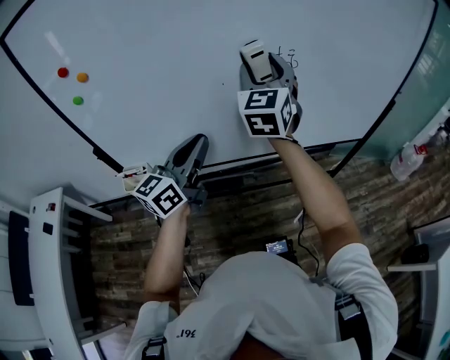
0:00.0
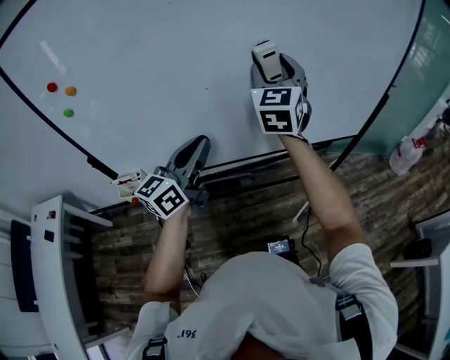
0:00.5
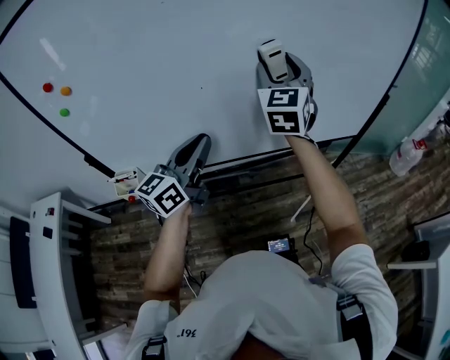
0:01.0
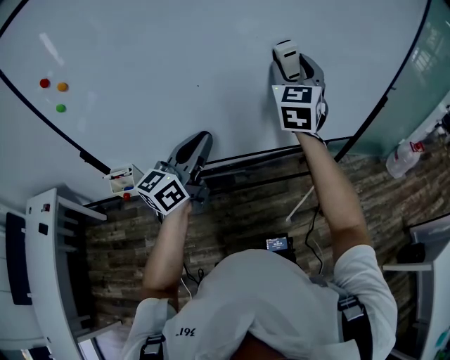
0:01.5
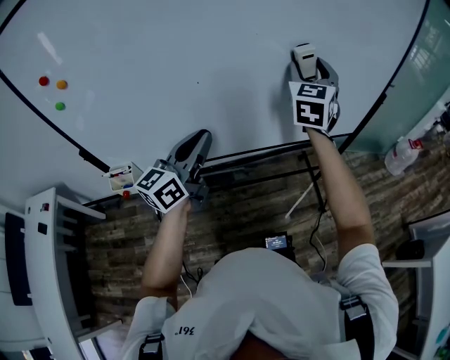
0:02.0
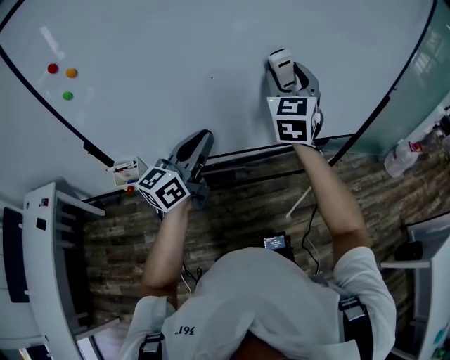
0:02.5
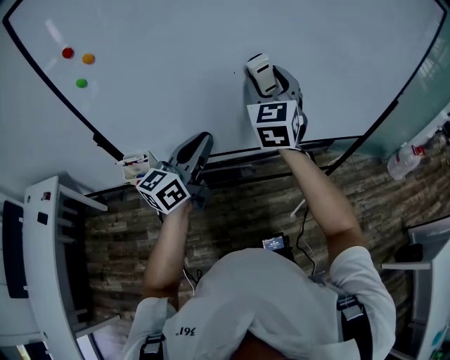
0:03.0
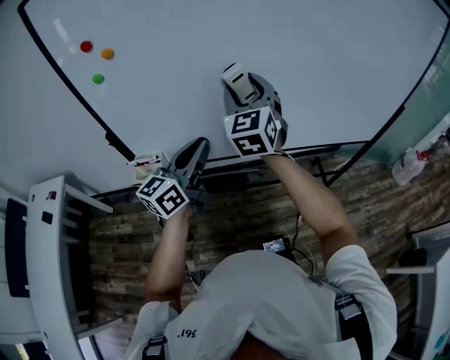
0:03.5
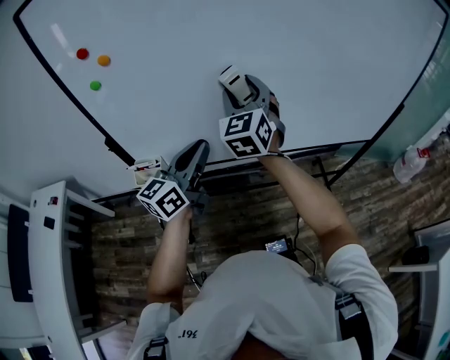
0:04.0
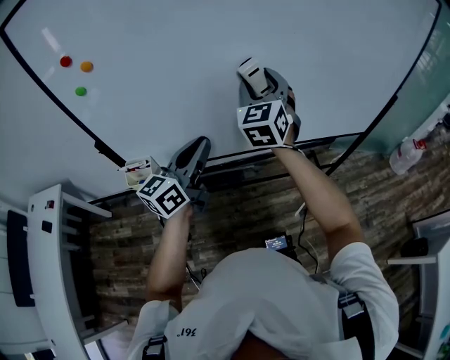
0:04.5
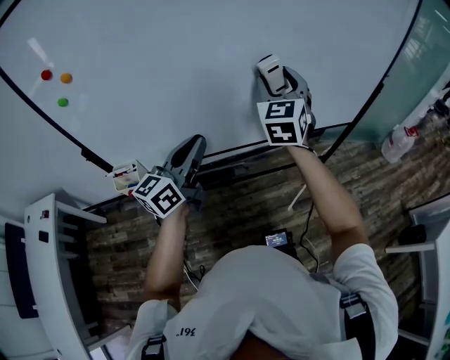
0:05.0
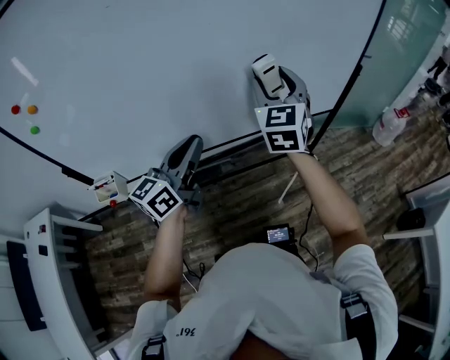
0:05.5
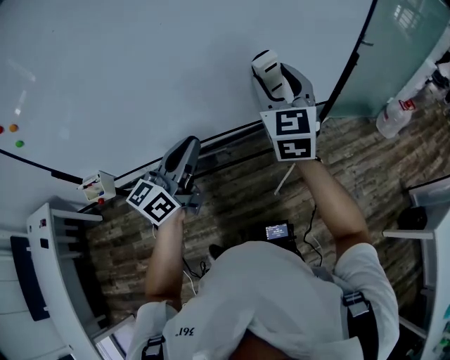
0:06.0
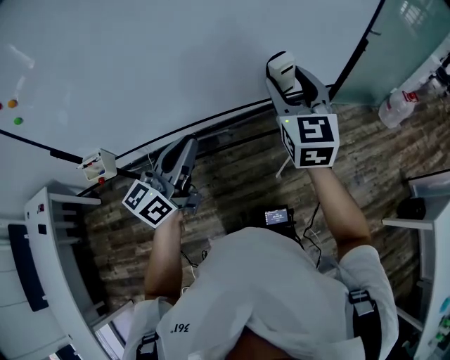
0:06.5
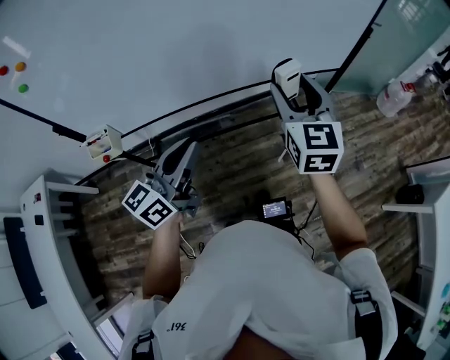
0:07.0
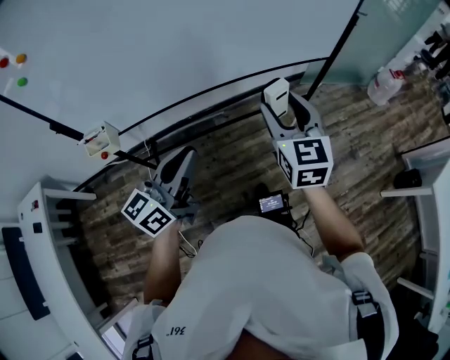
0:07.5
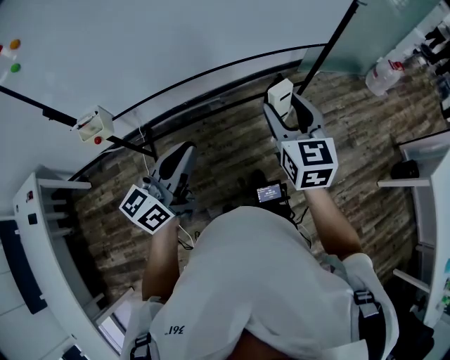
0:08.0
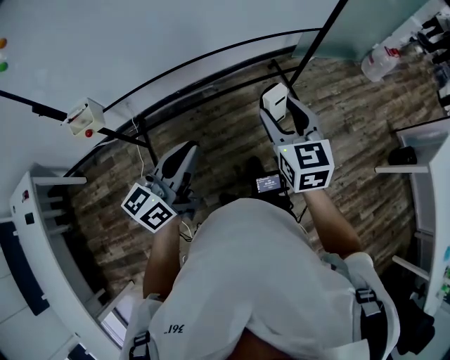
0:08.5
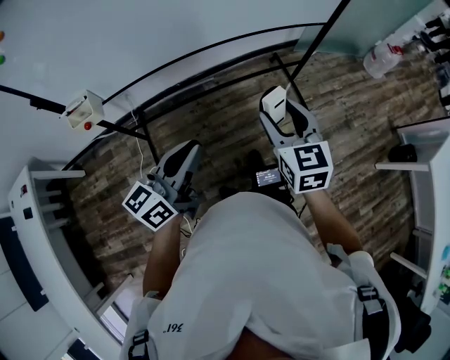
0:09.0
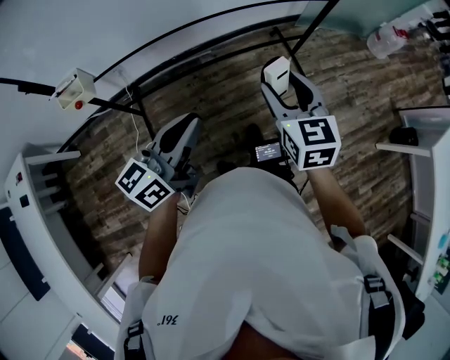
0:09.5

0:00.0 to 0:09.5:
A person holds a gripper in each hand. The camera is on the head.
0:00.0 to 0:02.0: The right gripper moves to the right and forward, approximately 20 cm, while the left gripper is displaced to the right by some 5 cm.
0:02.0 to 0:04.0: The right gripper shifts some 30 cm to the left and backward, and changes its angle by roughly 20 degrees. Meanwhile the left gripper is displaced to the left and backward by about 10 cm.
0:04.0 to 0:05.5: The left gripper shifts roughly 15 cm to the right. Meanwhile the right gripper goes approximately 30 cm to the right.
0:05.5 to 0:07.5: The left gripper is displaced backward by roughly 20 cm; the right gripper is displaced backward and downward by about 25 cm.
0:07.5 to 0:09.5: Both grippers move downward and backward, roughly 10 cm.

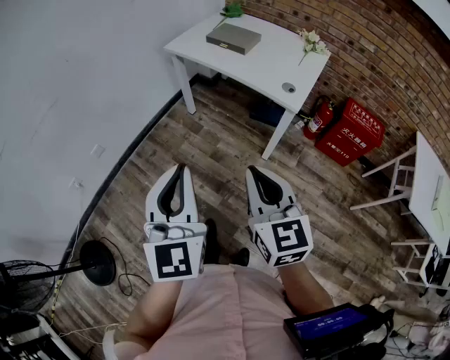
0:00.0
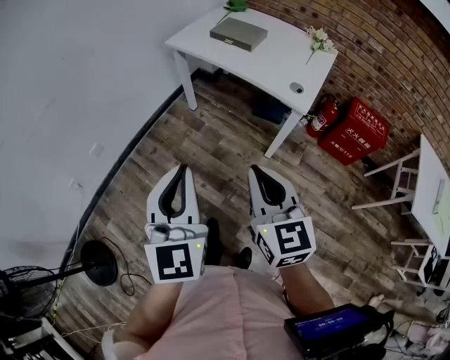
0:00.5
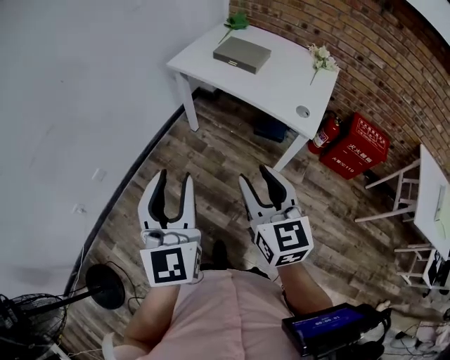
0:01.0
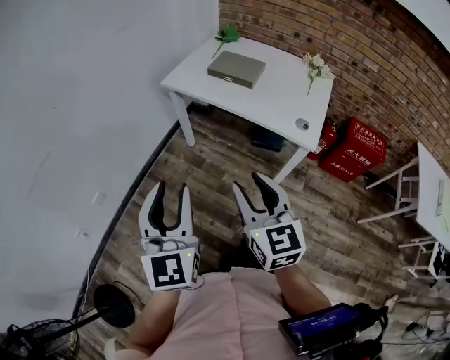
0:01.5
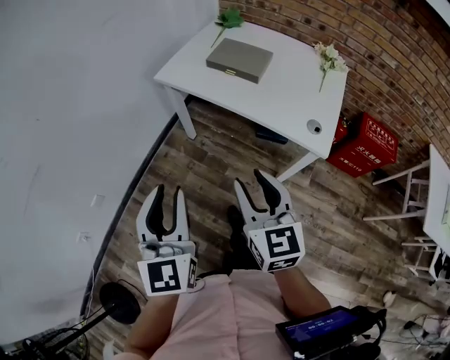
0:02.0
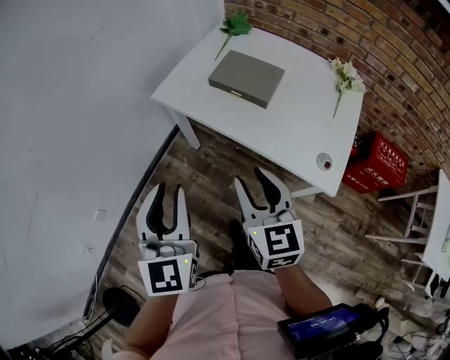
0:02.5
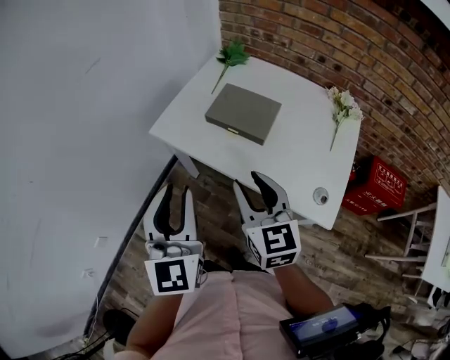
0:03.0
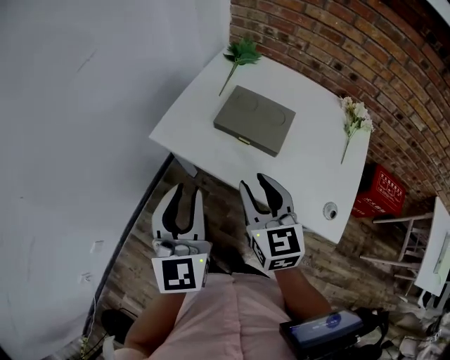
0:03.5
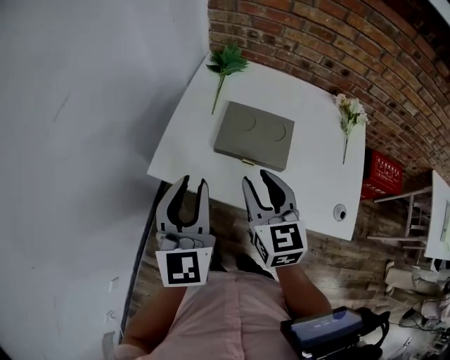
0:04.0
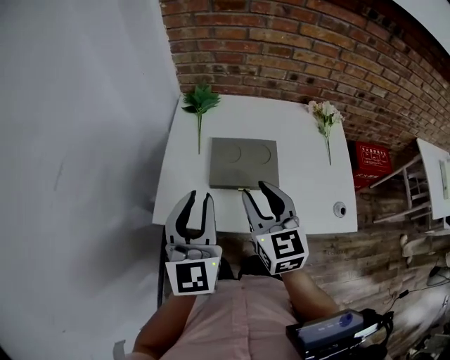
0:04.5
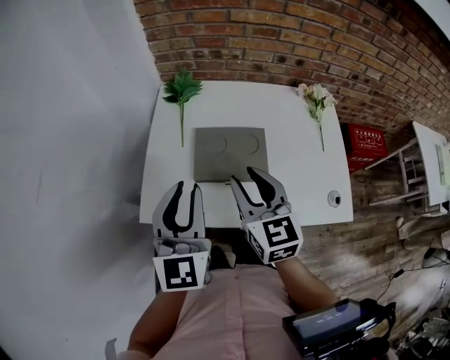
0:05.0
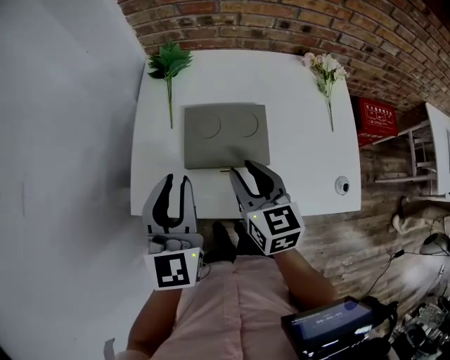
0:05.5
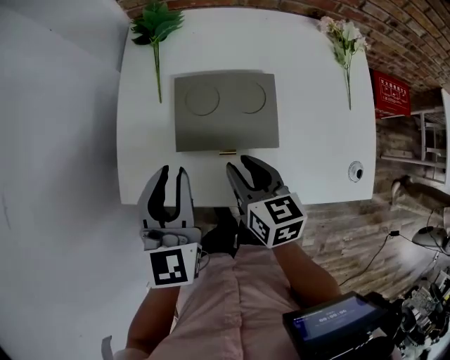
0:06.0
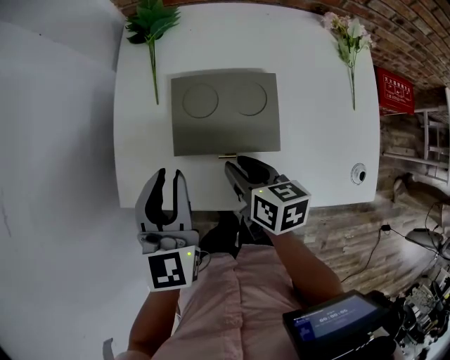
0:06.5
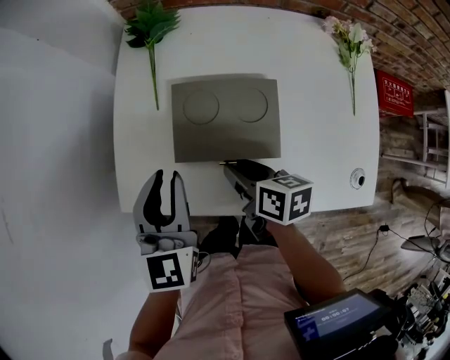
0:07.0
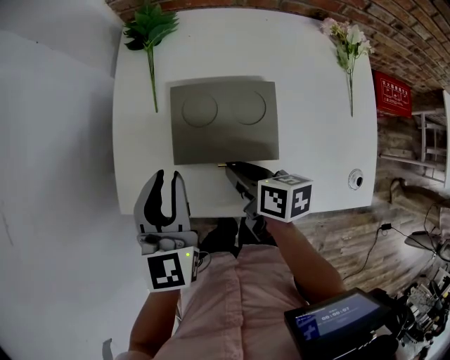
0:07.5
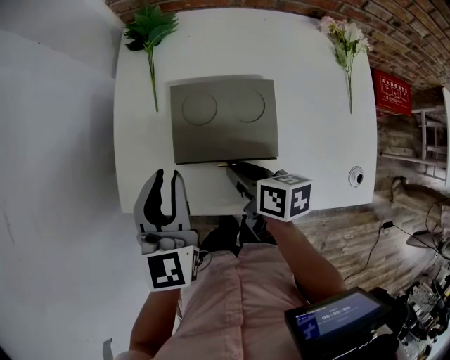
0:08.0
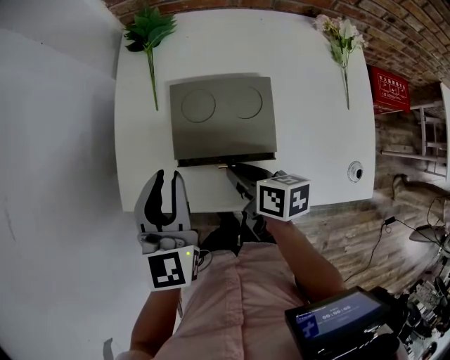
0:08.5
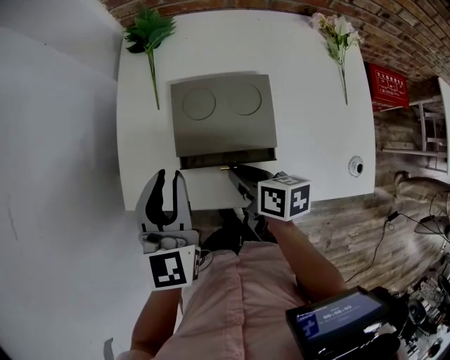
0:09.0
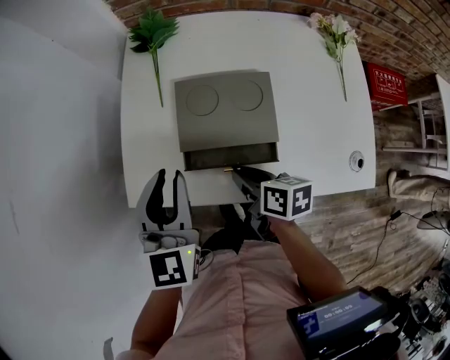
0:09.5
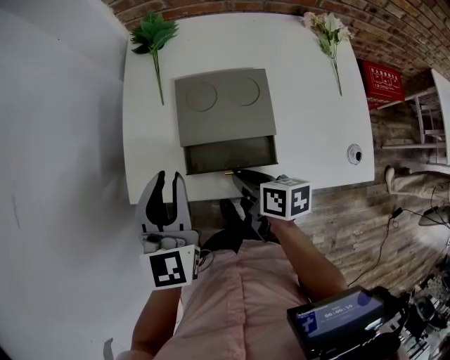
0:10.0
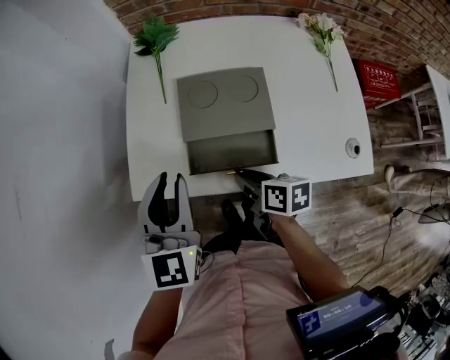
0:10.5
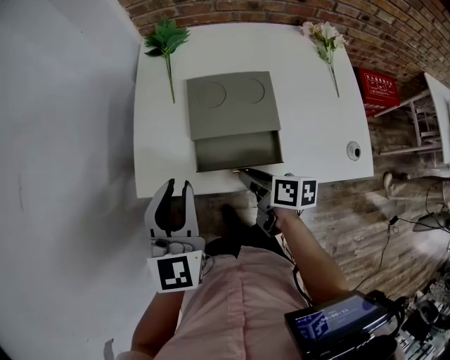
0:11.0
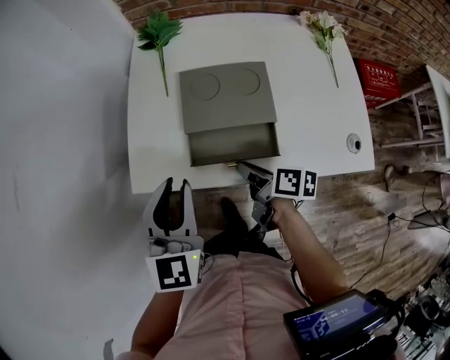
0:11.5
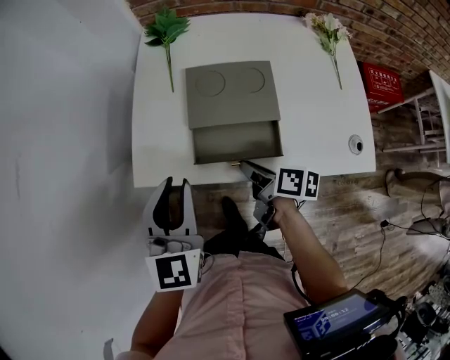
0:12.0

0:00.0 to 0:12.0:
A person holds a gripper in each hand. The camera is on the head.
0:00.0 to 0:02.0: The grippers both shift forward by about 25 cm. The right gripper opens up. The left gripper opens.
0:02.0 to 0:04.0: Both grippers are carried forward, approximately 40 cm.
0:04.0 to 0:06.0: The right gripper goes some 15 cm downward and forward, and changes its angle by approximately 30 degrees; the left gripper heads forward and downward, covering approximately 15 cm.
0:06.0 to 0:08.0: The right gripper swivels about 30 degrees.
0:08.0 to 0:10.0: The left gripper changes place by approximately 5 cm. The right gripper is displaced backward by roughly 5 cm.
0:10.0 to 0:12.0: The left gripper shifts approximately 5 cm backward.

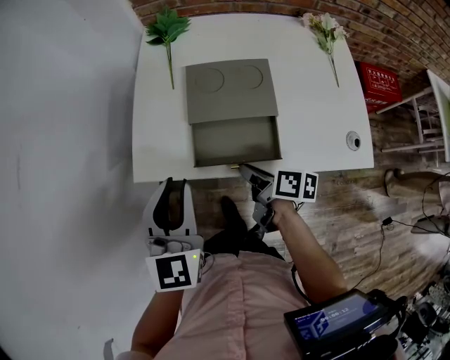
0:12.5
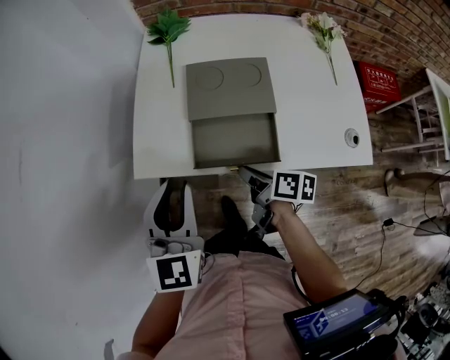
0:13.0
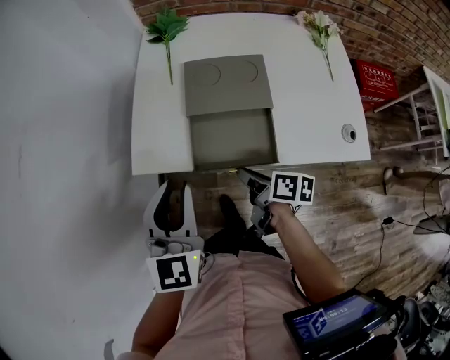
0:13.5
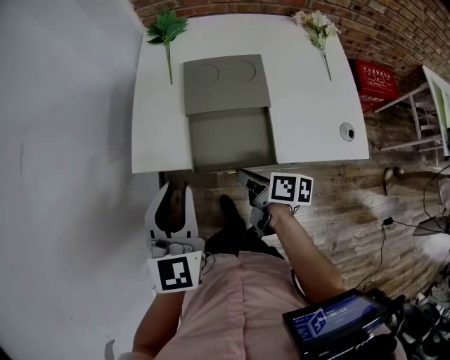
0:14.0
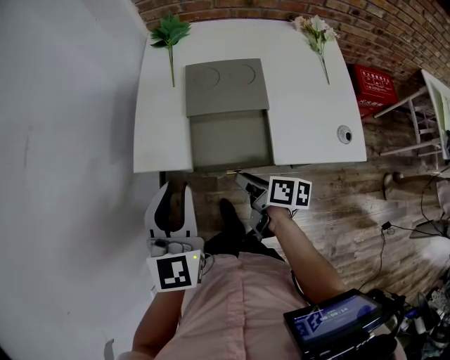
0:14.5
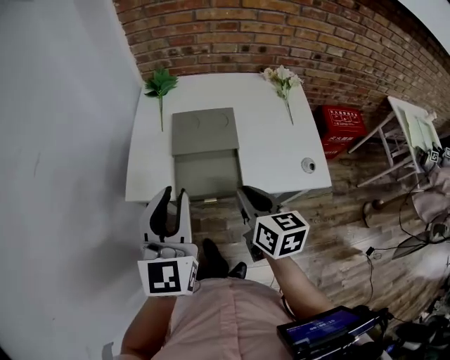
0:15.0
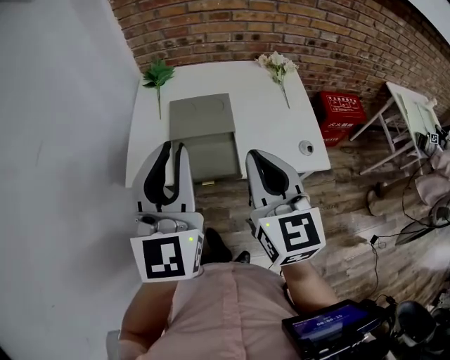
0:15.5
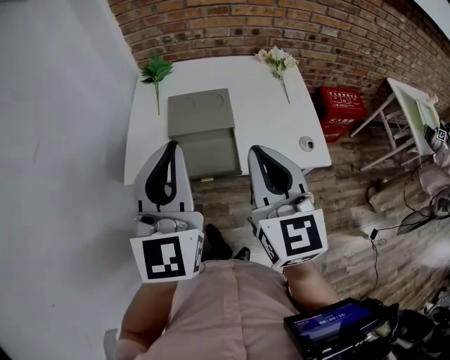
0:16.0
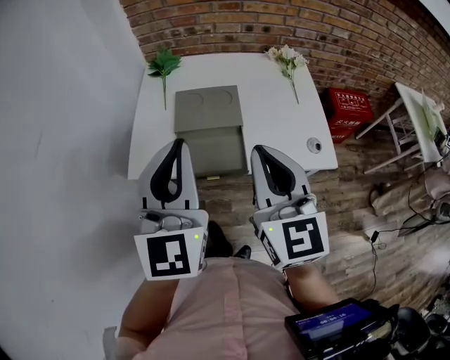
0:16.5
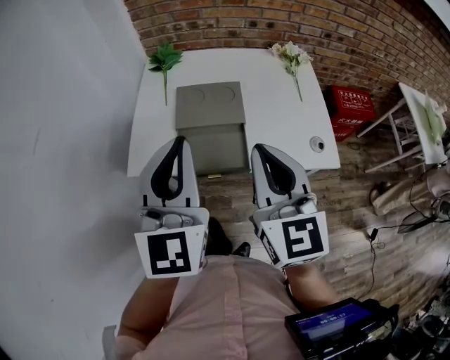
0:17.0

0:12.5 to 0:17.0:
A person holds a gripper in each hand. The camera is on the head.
0:12.5 to 0:14.5: The two grippers go about 5 cm backward. The right gripper opens.
0:14.5 to 0:17.0: The right gripper shifts some 30 cm upward, rotates around the line of its fingers by some 70 degrees, counterclockwise from behind, and closes. Meanwhile the left gripper heads upward and to the right, covering about 15 cm.

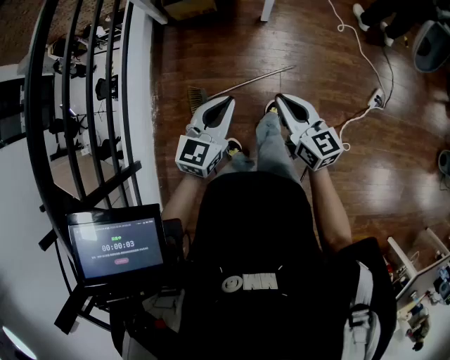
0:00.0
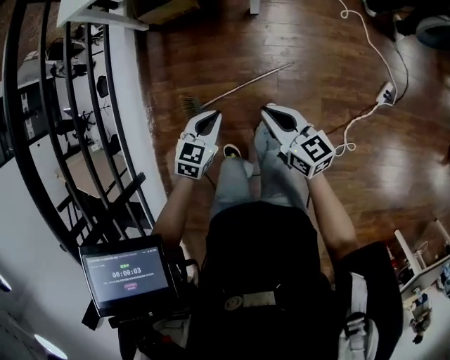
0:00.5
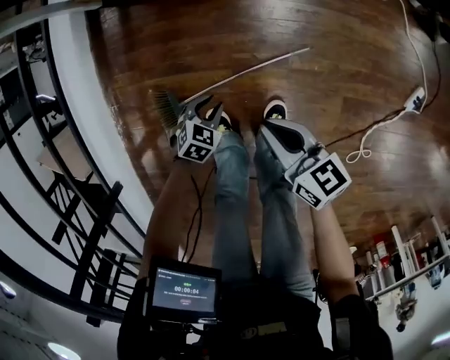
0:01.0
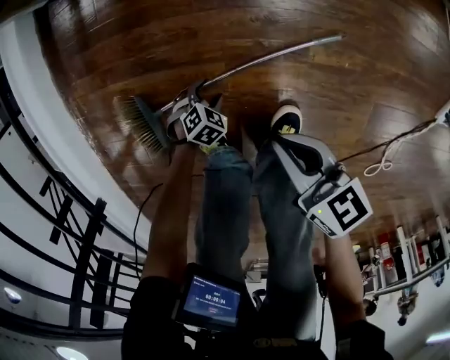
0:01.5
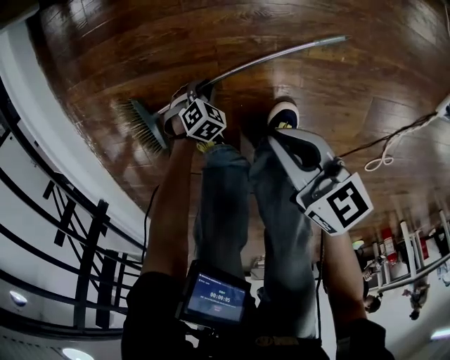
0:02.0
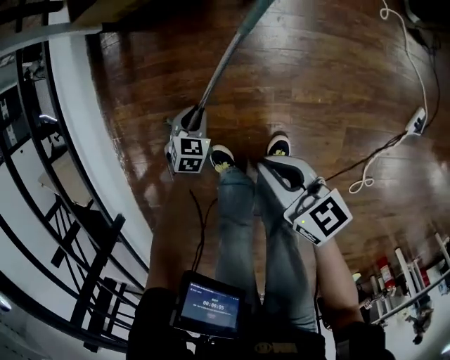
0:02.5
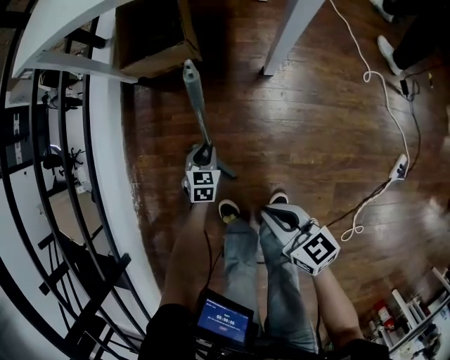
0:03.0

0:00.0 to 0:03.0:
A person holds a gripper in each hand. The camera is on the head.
0:00.0 to 0:01.5: The left gripper travels downward by some 80 cm, points its fingers about 60 degrees further downward, and opens up. Meanwhile the right gripper shifts some 50 cm downward, and turns by roughly 30 degrees.
0:01.5 to 0:03.0: Both grippers move upward, about 25 cm. The left gripper changes its angle by roughly 50 degrees, and closes up.
